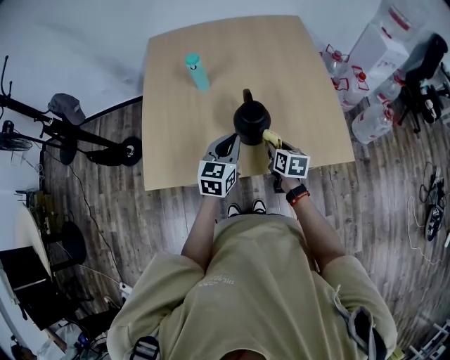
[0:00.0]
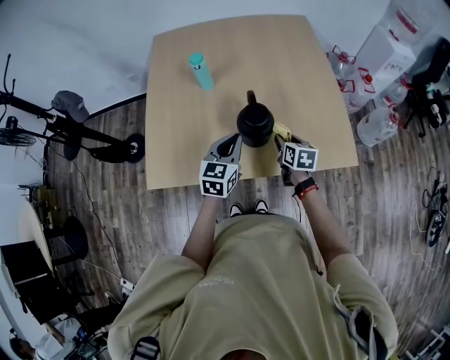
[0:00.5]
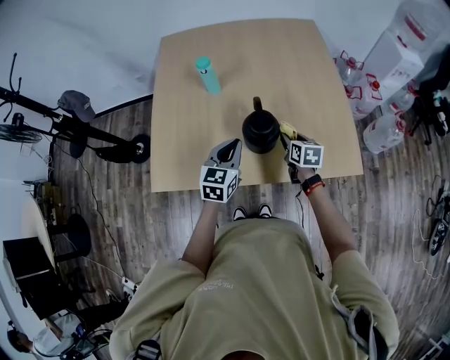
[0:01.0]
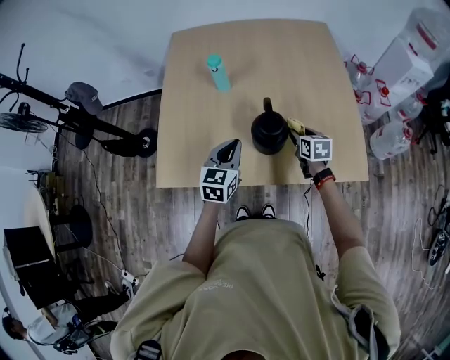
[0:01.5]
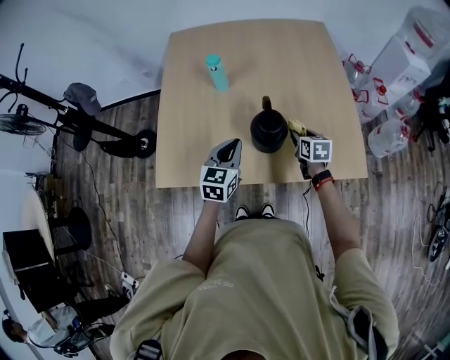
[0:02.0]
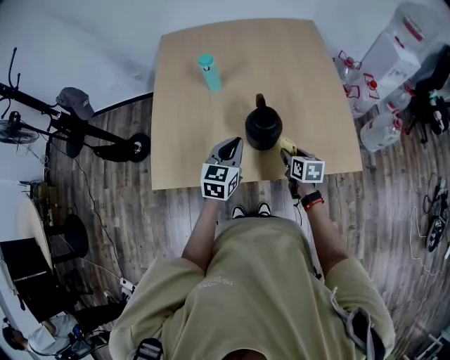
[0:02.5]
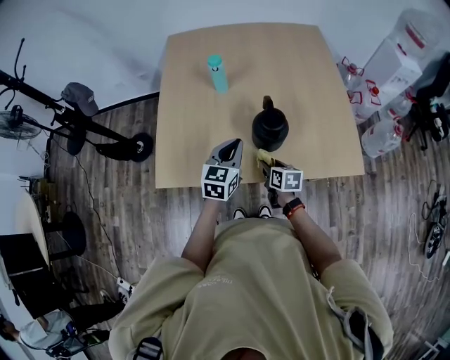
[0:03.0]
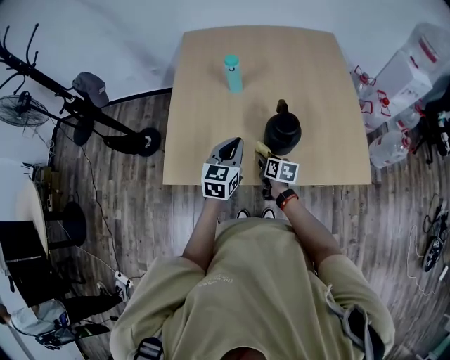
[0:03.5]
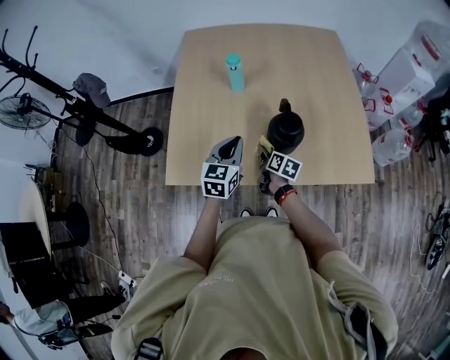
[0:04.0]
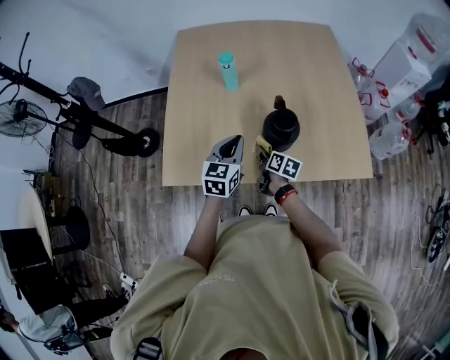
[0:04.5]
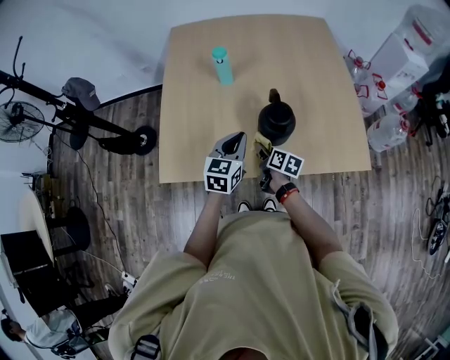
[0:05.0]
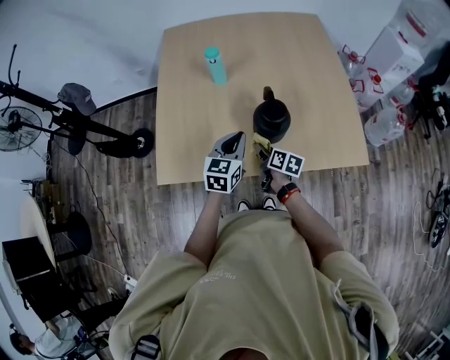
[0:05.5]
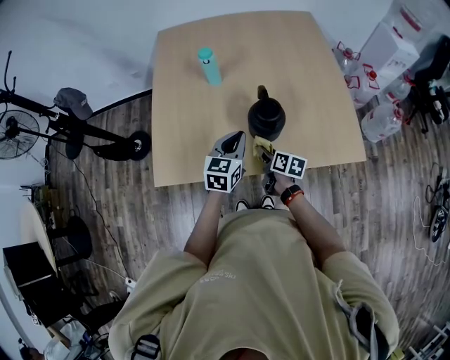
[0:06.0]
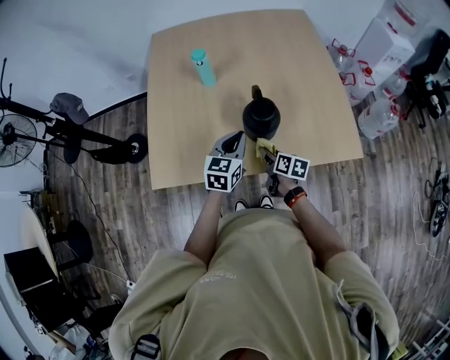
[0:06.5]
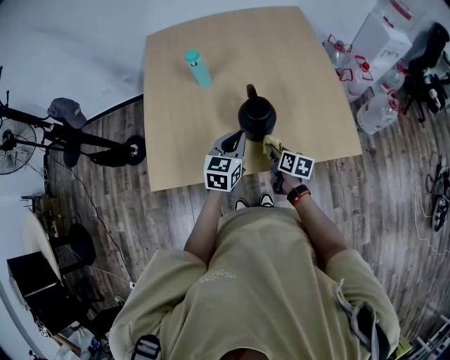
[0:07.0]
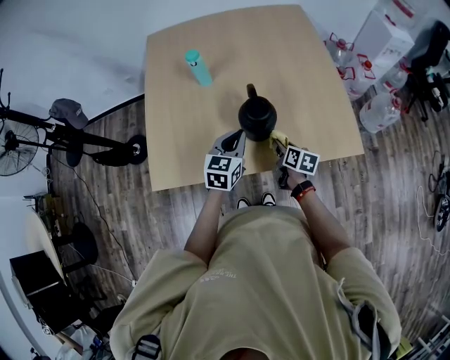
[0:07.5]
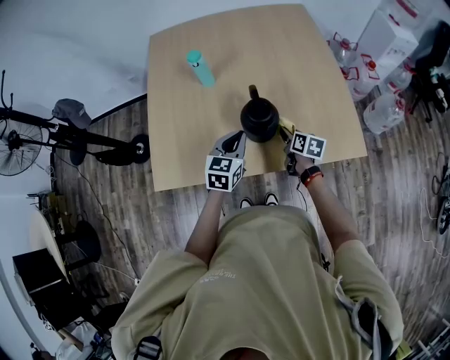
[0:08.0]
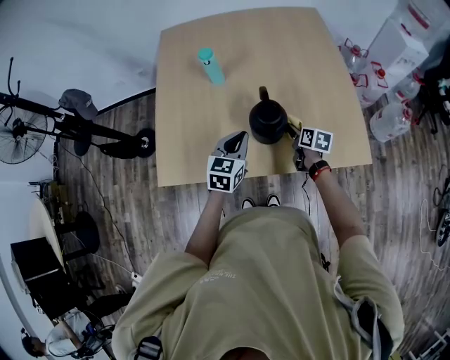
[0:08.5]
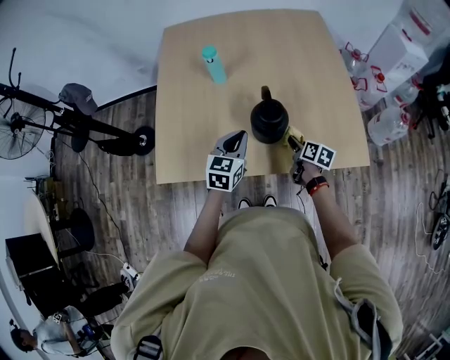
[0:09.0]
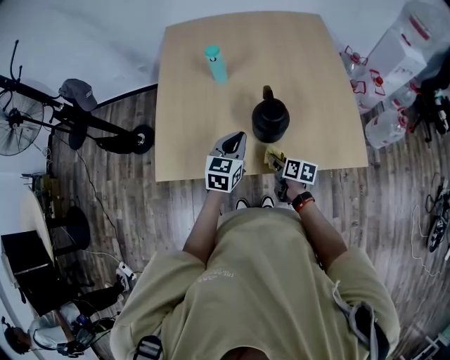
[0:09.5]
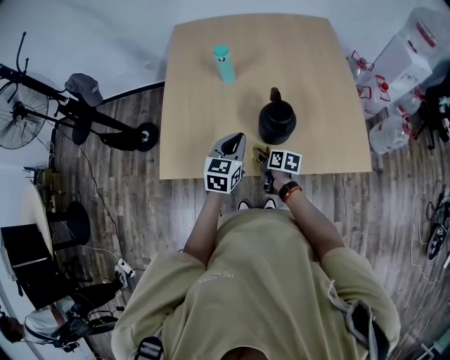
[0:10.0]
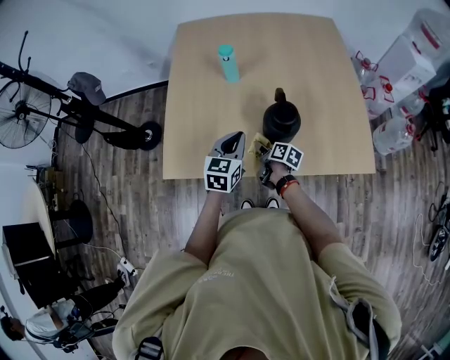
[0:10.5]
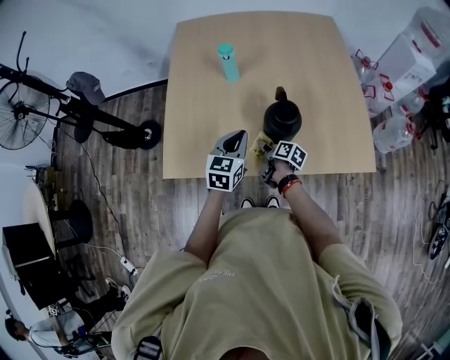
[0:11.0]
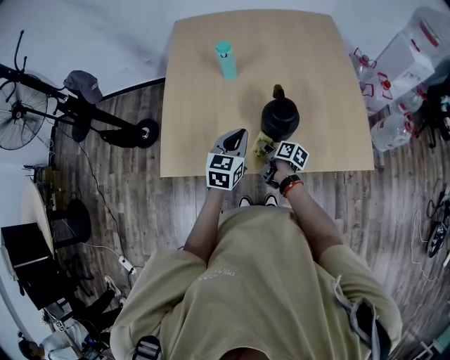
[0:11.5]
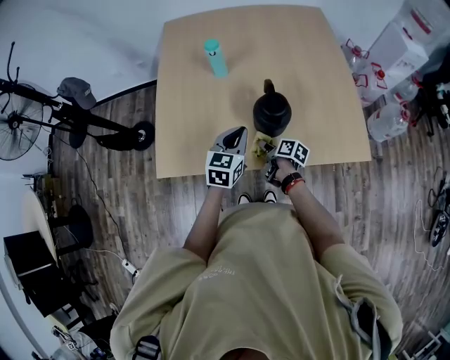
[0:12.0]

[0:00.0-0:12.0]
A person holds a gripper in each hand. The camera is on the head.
0:00.0 to 0:02.0: The left gripper ends up roughly 5 cm from where it was. The right gripper moves forward, some 10 cm.
0:02.0 to 0:04.0: The left gripper shifts some 10 cm to the left; the right gripper shifts some 20 cm to the left, and swivels roughly 30 degrees.
0:04.0 to 0:06.0: The two grippers go roughly 5 cm to the right.
0:06.0 to 0:08.0: The right gripper travels to the right and forward by about 15 cm.
0:08.0 to 0:10.0: The left gripper is displaced to the left by about 5 cm, while the right gripper travels to the left by some 15 cm.
0:10.0 to 0:12.0: The right gripper turns by some 20 degrees.

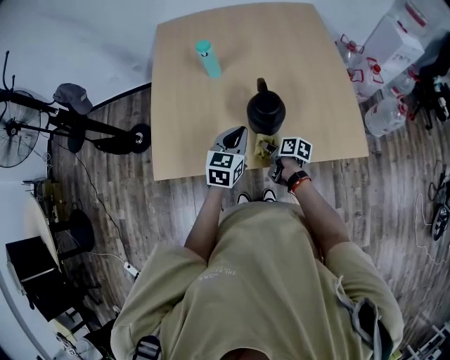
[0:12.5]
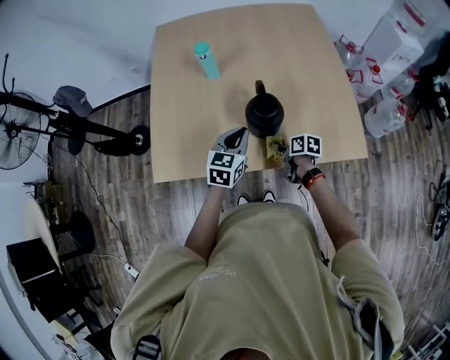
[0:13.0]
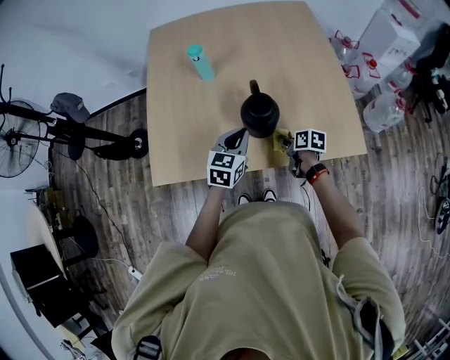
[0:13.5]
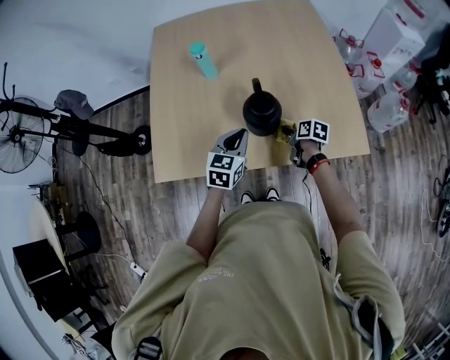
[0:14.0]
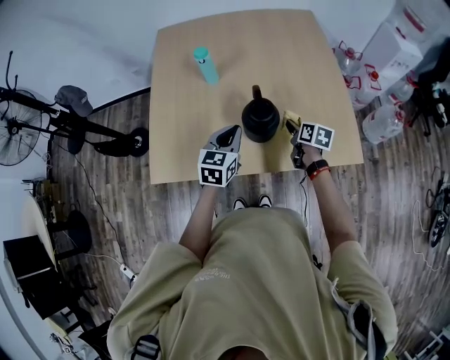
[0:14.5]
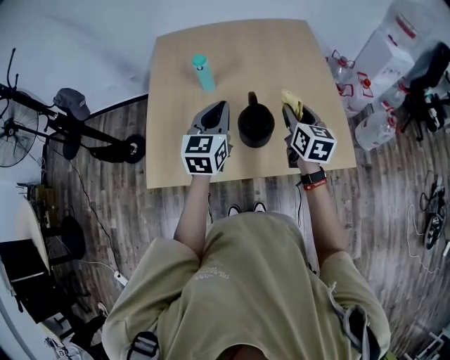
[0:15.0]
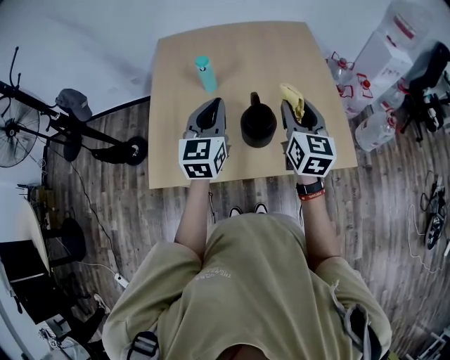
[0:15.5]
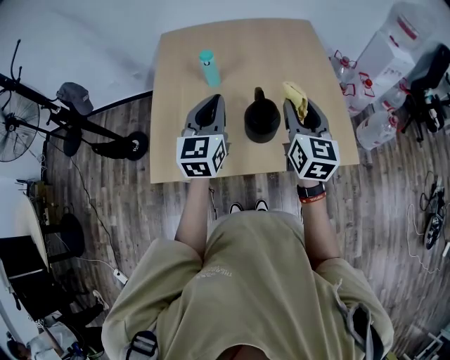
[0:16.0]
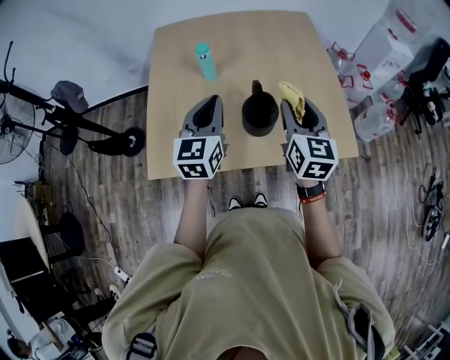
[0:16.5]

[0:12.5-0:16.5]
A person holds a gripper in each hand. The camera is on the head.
0:12.5 to 0:14.5: The right gripper heads to the right, upward and forward, covering some 20 cm, and changes its angle by some 30 degrees.
0:14.5 to 0:16.5: The left gripper goes some 15 cm upward and to the left. Meanwhile the right gripper goes roughly 25 cm upward, and turns by some 40 degrees.

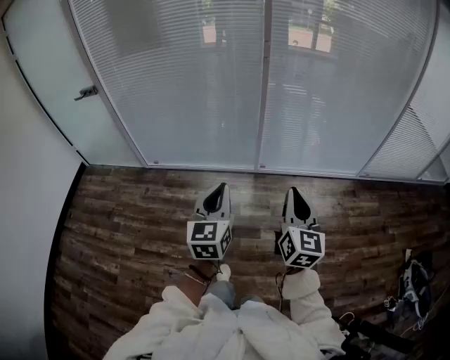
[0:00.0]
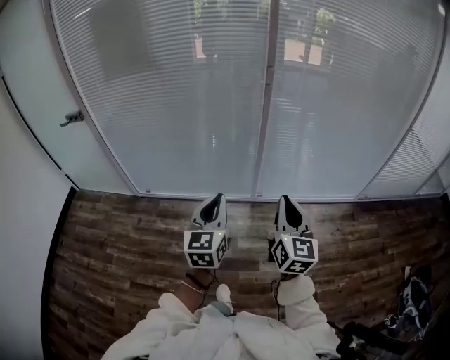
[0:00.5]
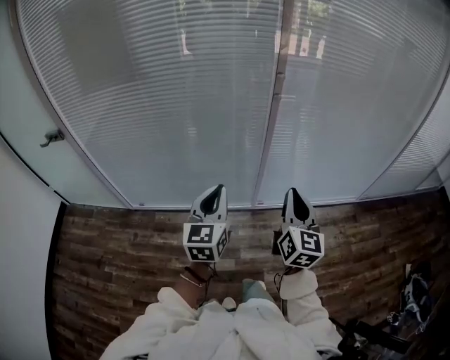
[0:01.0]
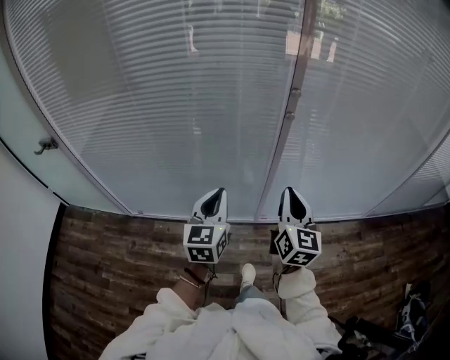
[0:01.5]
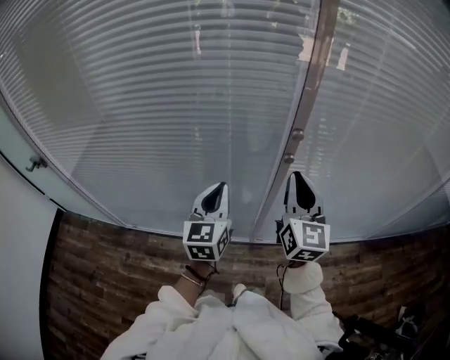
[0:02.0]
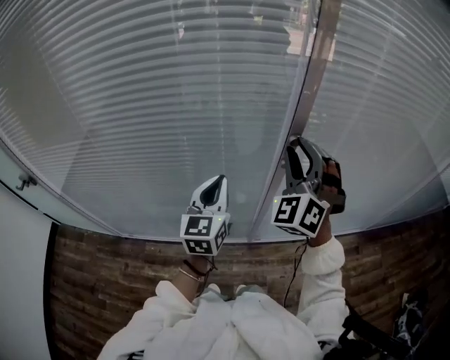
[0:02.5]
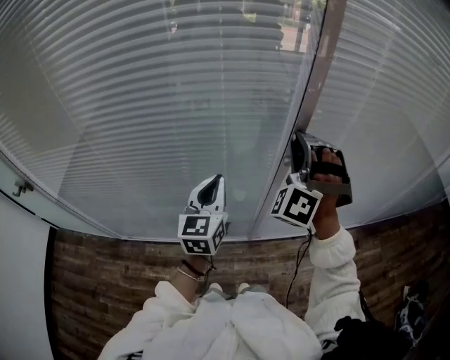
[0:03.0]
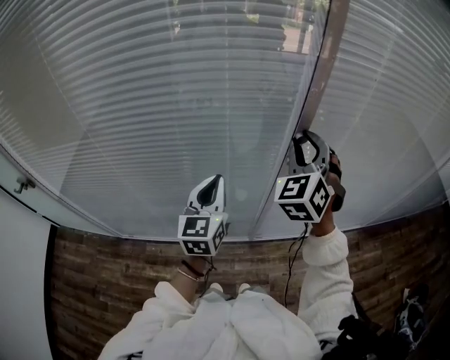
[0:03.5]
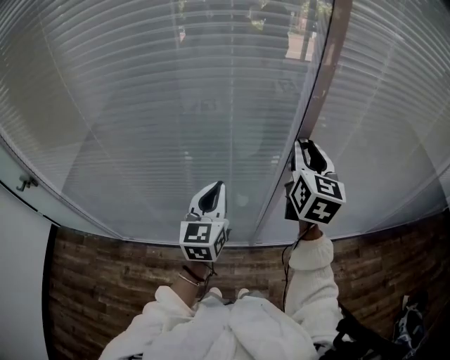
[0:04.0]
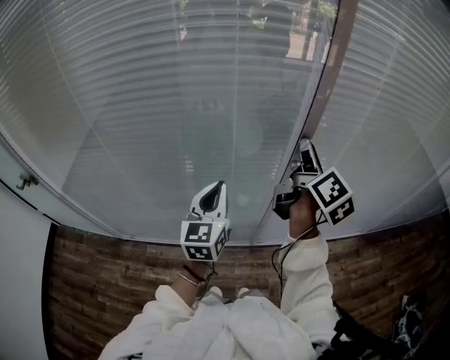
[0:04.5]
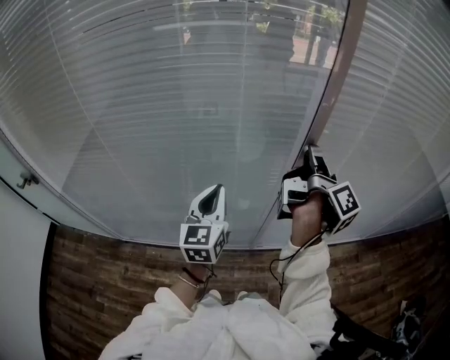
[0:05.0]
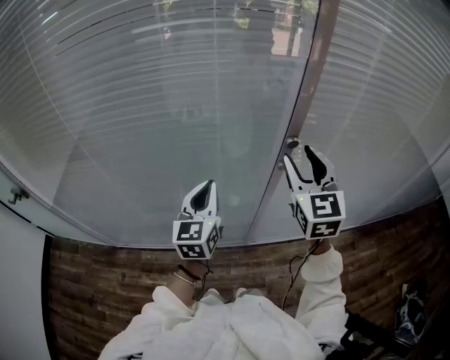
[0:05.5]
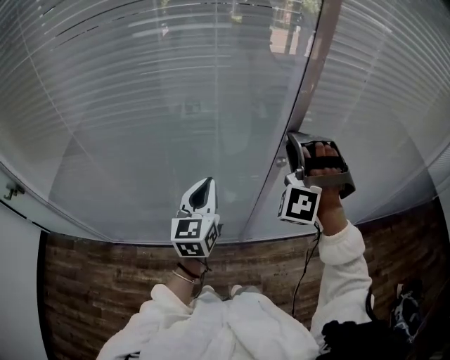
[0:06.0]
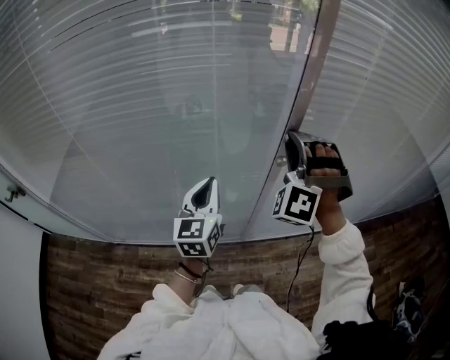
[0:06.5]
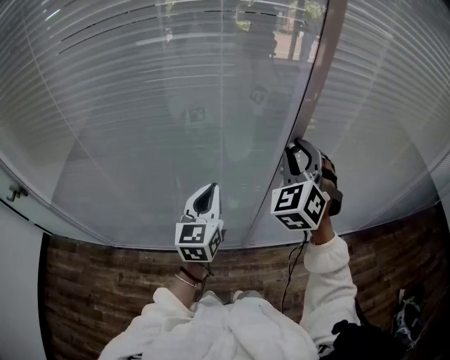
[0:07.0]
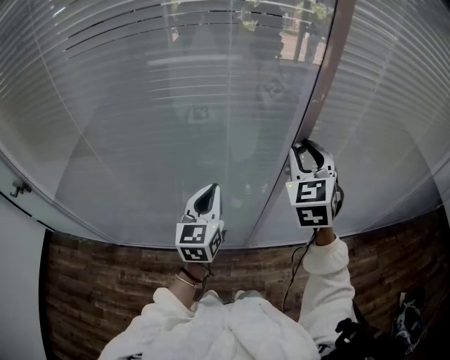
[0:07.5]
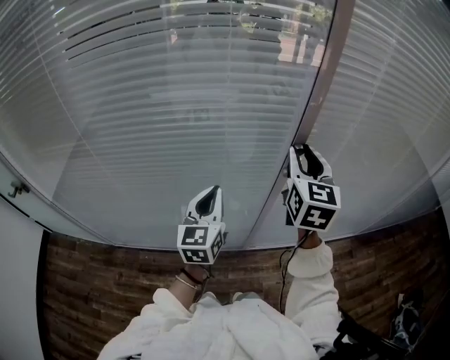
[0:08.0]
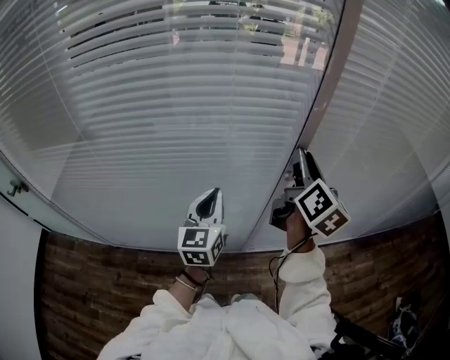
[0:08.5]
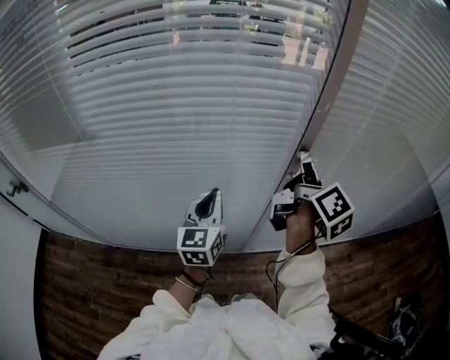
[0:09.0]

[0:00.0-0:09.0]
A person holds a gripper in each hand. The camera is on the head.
0:00.0 to 0:02.0: The two grippers travel together, forward, some 70 cm.
0:02.0 to 0:04.5: The right gripper heads forward, covering about 10 cm, twists some 50 degrees clockwise, seen from behind, and opens its fingers.
0:04.5 to 0:07.0: The right gripper twists roughly 100 degrees counterclockwise, seen from behind.
0:07.0 to 0:09.0: The right gripper twists about 110 degrees clockwise, seen from behind.

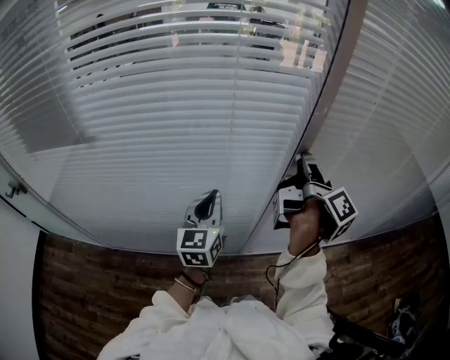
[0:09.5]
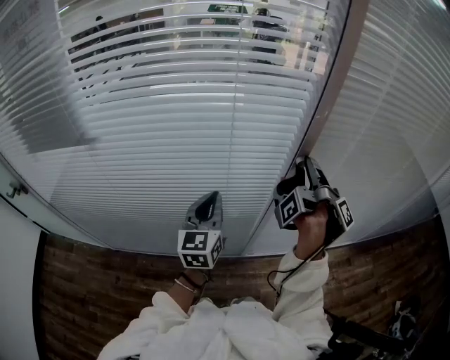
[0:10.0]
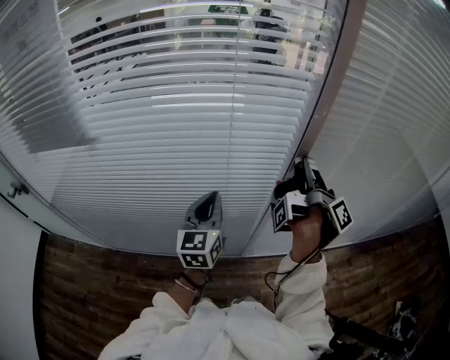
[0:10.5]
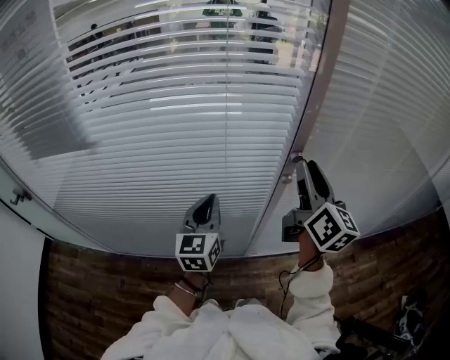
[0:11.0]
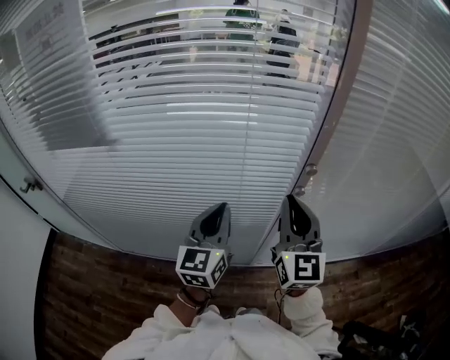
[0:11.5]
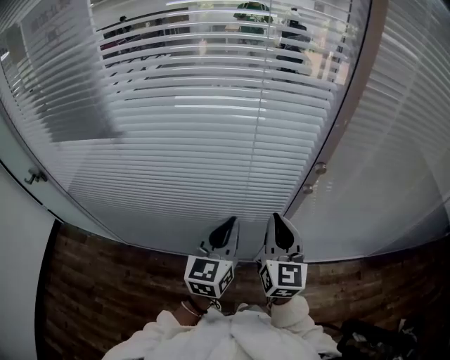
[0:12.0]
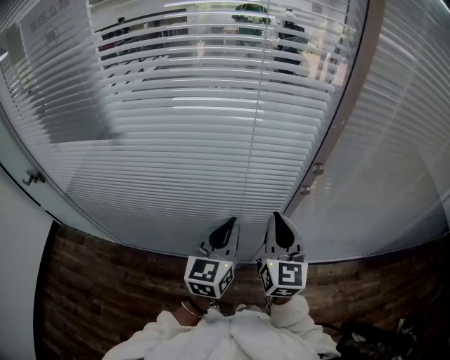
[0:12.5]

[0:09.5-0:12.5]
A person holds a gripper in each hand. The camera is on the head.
0:09.5 to 0:11.0: The right gripper changes place by roughly 5 cm, and rolls counterclockwise, seen from behind, by roughly 60 degrees.
0:11.0 to 0:12.5: The right gripper is displaced downward, to the left and backward by roughly 15 cm, turns by about 30 degrees, and closes its fingers, while the left gripper is displaced backward by roughly 5 cm.
